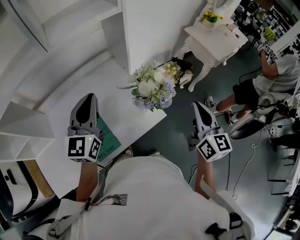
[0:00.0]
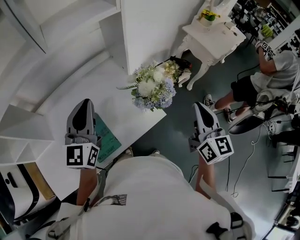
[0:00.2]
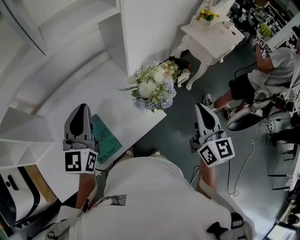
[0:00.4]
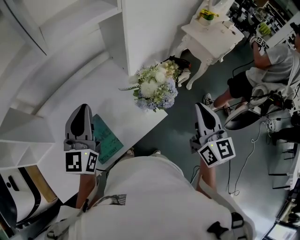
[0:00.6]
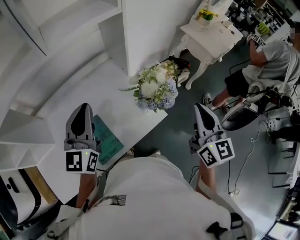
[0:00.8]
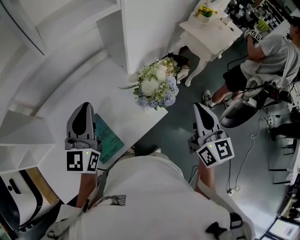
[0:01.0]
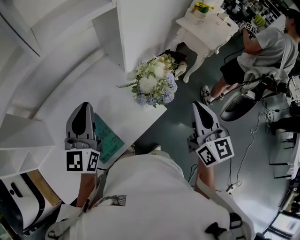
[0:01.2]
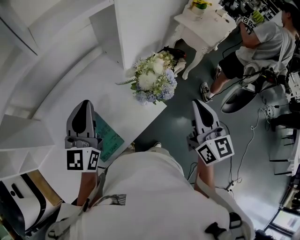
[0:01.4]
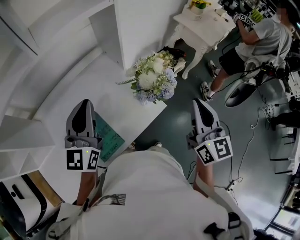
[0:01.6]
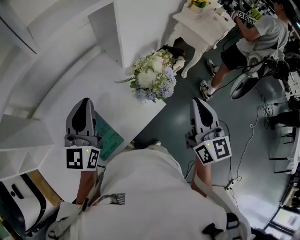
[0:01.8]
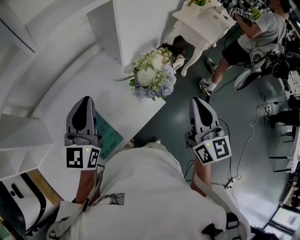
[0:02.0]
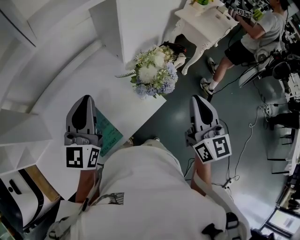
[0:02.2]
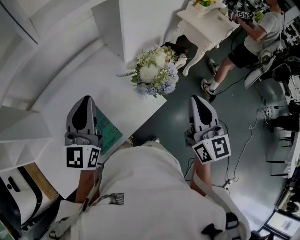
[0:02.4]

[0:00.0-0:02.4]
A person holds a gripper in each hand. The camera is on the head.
0:00.0 to 0:01.2: The right gripper shifts by roughly 5 cm.
0:01.2 to 0:02.4: There are only small adjustments of the grippers.

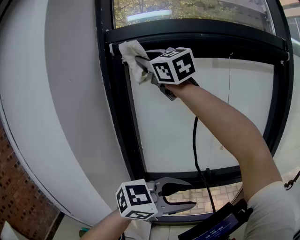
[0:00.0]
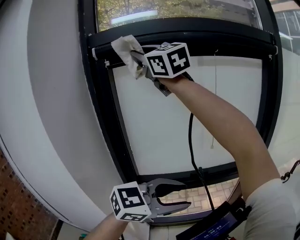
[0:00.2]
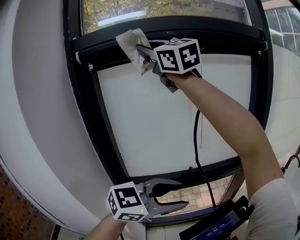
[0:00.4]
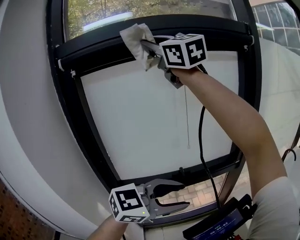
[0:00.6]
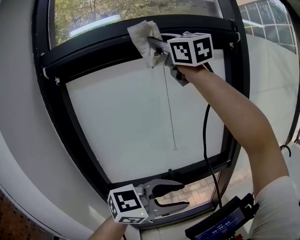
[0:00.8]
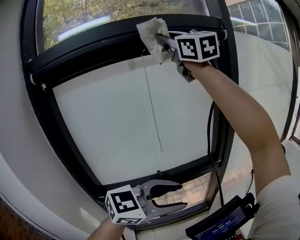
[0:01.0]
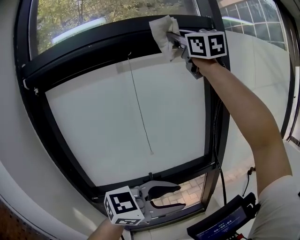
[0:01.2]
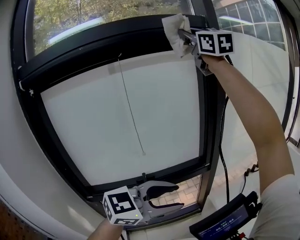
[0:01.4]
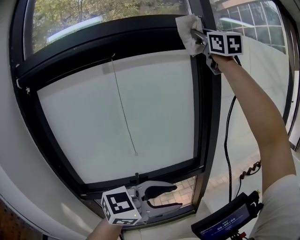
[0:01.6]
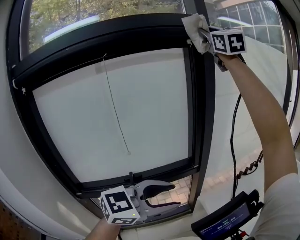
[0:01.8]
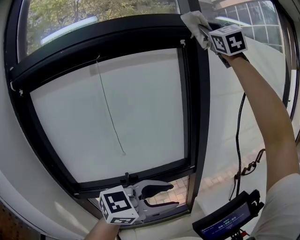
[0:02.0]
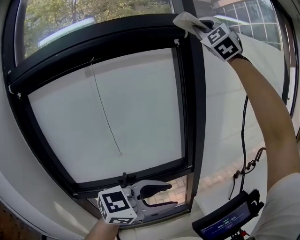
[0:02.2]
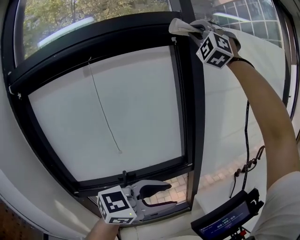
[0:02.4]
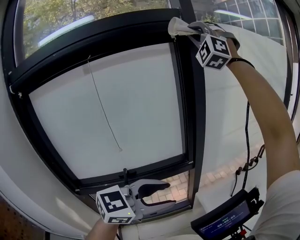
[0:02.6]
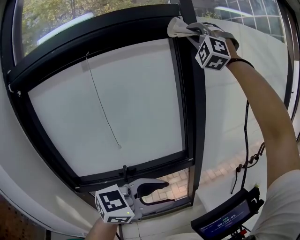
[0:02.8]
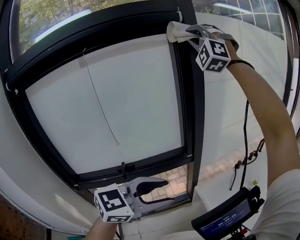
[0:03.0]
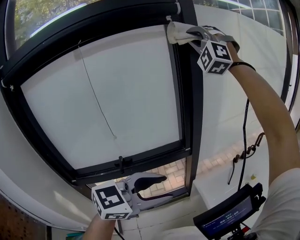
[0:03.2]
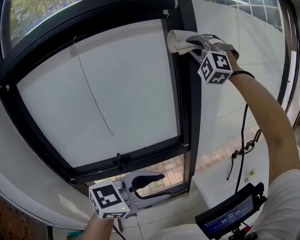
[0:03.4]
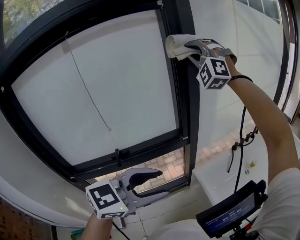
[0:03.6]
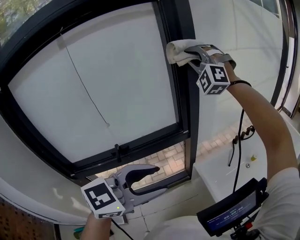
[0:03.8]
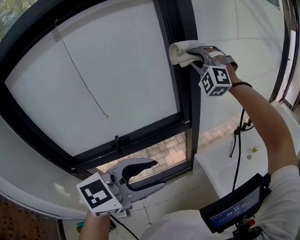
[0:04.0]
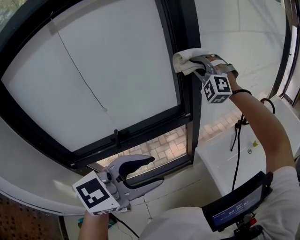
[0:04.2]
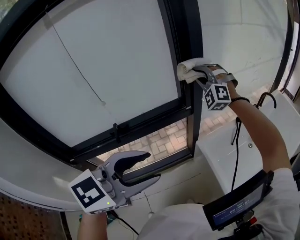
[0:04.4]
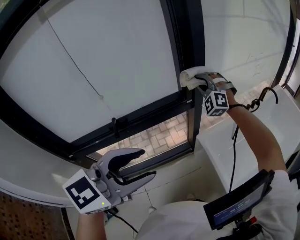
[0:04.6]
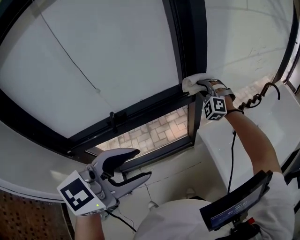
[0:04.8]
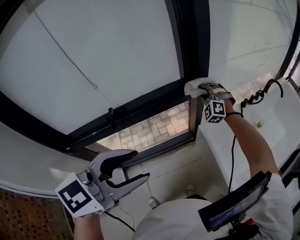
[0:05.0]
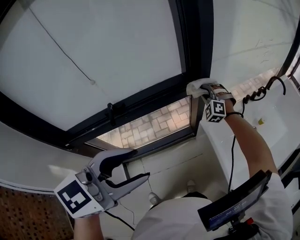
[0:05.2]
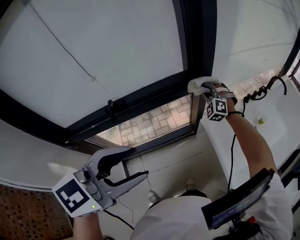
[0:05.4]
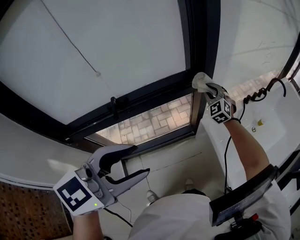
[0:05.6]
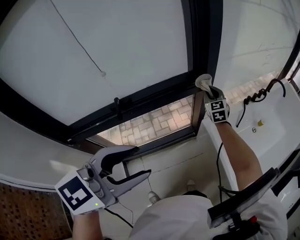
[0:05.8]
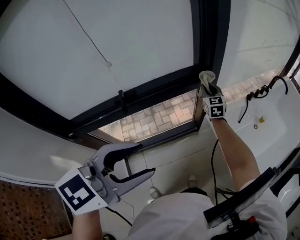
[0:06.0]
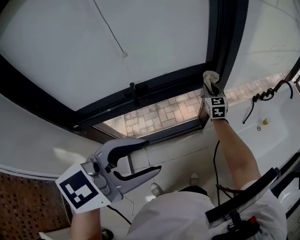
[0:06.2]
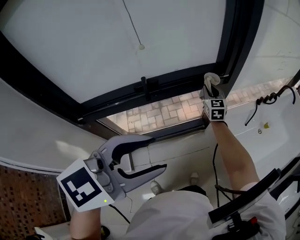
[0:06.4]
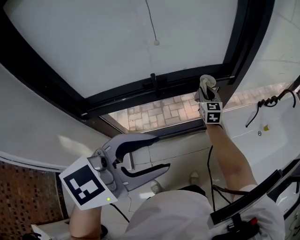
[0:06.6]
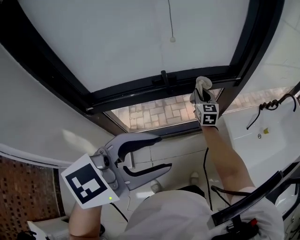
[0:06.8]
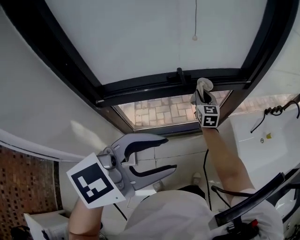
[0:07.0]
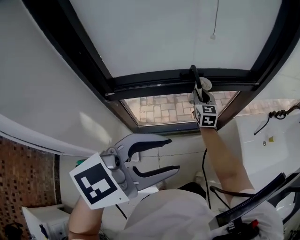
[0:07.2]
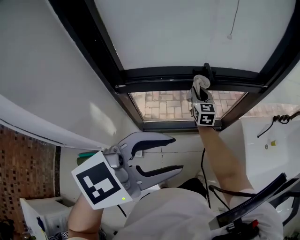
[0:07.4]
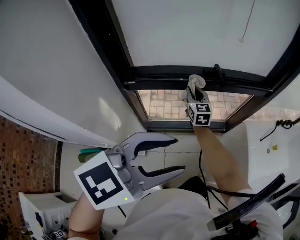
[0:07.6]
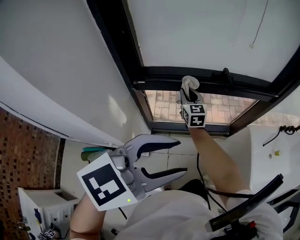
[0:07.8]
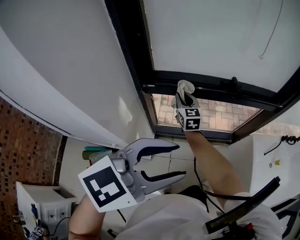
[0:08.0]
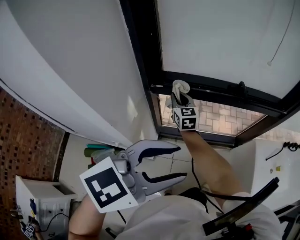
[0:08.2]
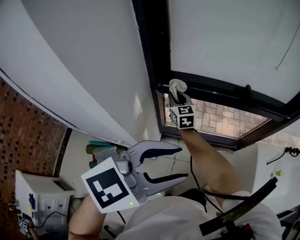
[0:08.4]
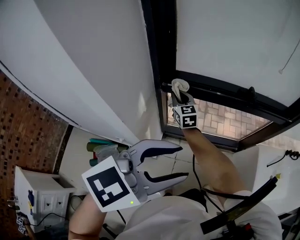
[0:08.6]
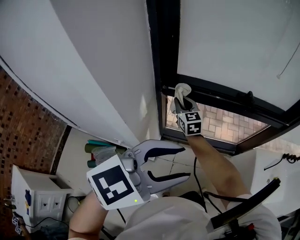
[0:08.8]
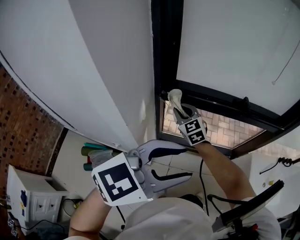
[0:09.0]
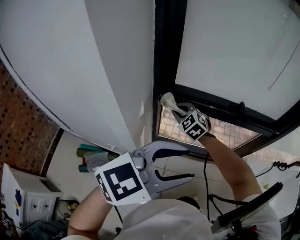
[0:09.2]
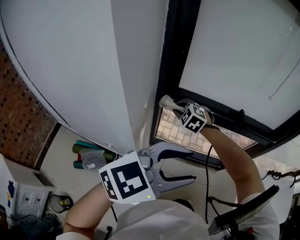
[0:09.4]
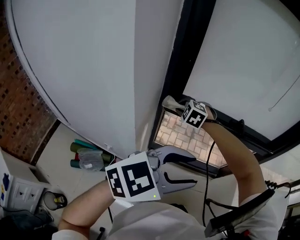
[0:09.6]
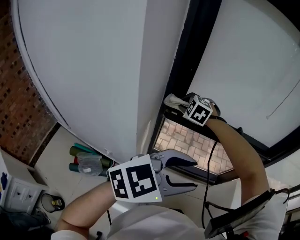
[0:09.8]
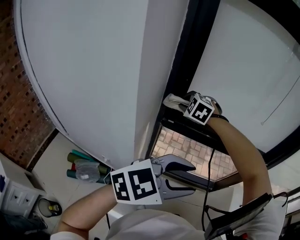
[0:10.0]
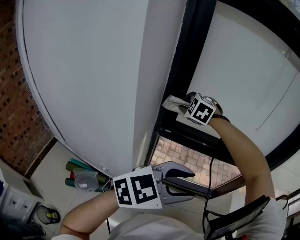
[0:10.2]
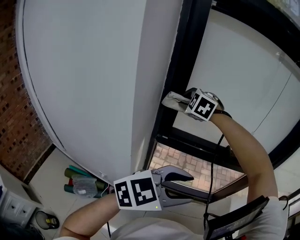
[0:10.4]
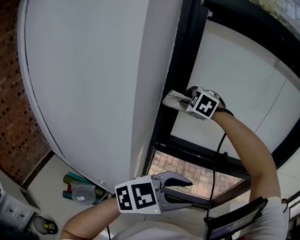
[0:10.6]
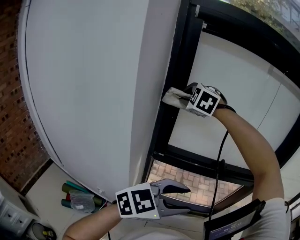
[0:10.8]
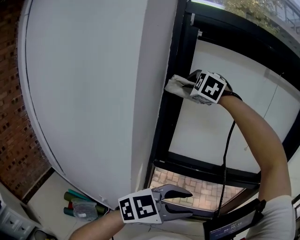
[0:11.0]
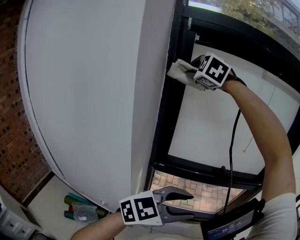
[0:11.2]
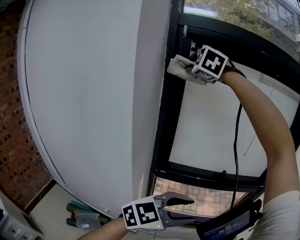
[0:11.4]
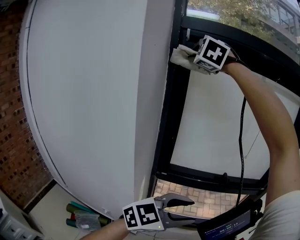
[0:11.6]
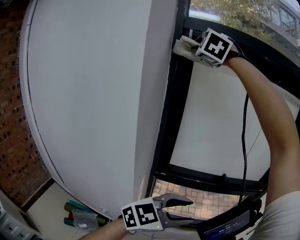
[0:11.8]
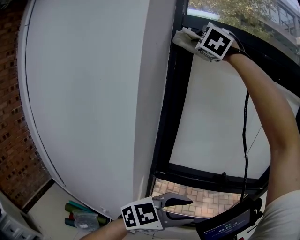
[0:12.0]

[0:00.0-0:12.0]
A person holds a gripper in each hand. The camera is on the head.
0:00.0 to 0:01.6: The right gripper ends up some 60 cm from where it was, and changes its angle by approximately 40 degrees; the left gripper ends up roughly 25 cm from where it was.
0:01.6 to 0:03.0: The right gripper goes approximately 10 cm downward, and rotates around the line of its fingers by some 80 degrees, counterclockwise from behind.
0:03.0 to 0:04.4: The right gripper heads downward, covering some 40 cm, and rotates about 30 degrees.
0:04.4 to 0:06.0: The right gripper moves downward, roughly 25 cm, and twists some 70 degrees clockwise, seen from behind. Meanwhile the left gripper heads to the left, covering some 5 cm.
0:06.0 to 0:07.6: The right gripper is displaced to the left and backward by roughly 50 cm, and rotates roughly 20 degrees. Meanwhile the left gripper shifts some 25 cm backward and to the left.
0:07.6 to 0:09.0: The left gripper goes about 10 cm to the left. Meanwhile the right gripper heads to the left and backward, covering some 25 cm, and rotates roughly 40 degrees.
0:09.0 to 0:10.4: The right gripper shifts about 25 cm upward, and rolls counterclockwise, seen from behind, by roughly 40 degrees.
0:10.4 to 0:12.0: The right gripper heads upward, covering roughly 40 cm, and tips its fingers upward by approximately 40 degrees.

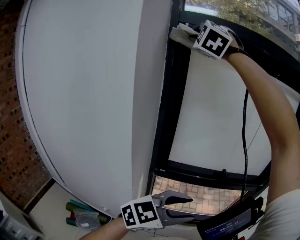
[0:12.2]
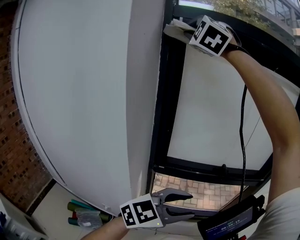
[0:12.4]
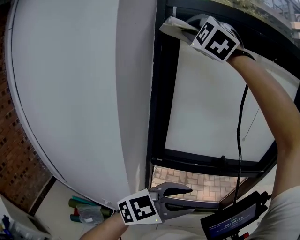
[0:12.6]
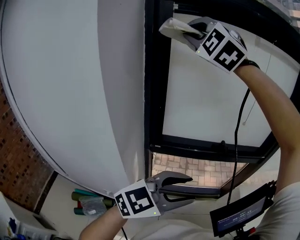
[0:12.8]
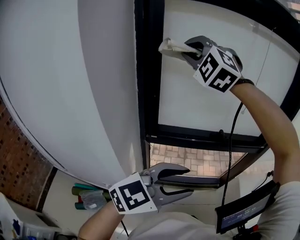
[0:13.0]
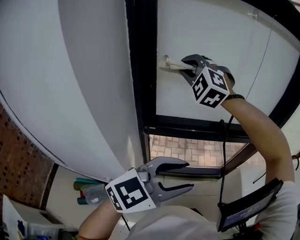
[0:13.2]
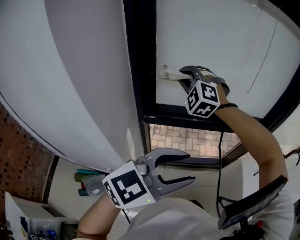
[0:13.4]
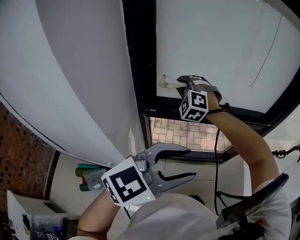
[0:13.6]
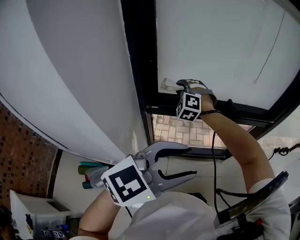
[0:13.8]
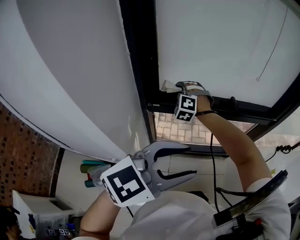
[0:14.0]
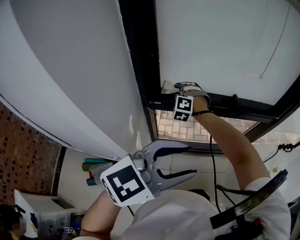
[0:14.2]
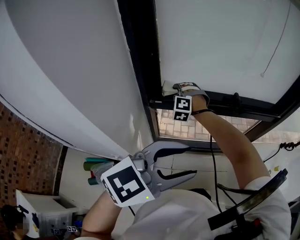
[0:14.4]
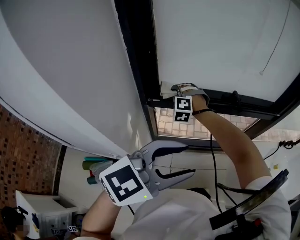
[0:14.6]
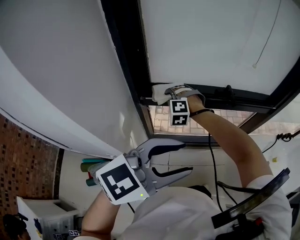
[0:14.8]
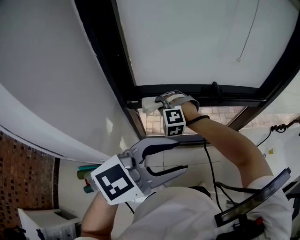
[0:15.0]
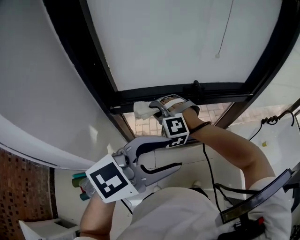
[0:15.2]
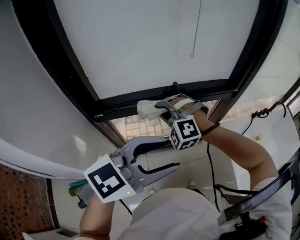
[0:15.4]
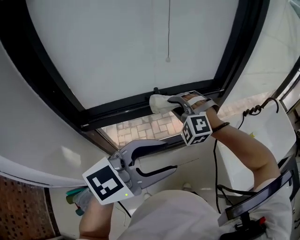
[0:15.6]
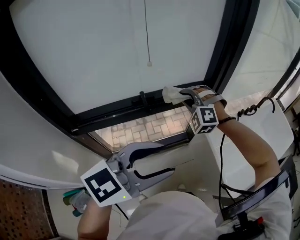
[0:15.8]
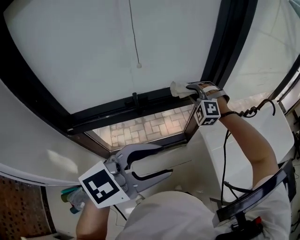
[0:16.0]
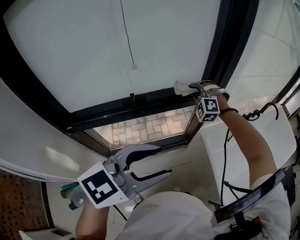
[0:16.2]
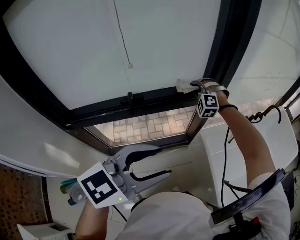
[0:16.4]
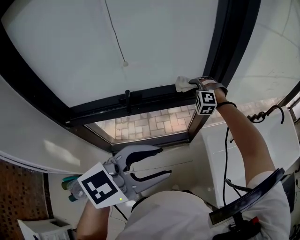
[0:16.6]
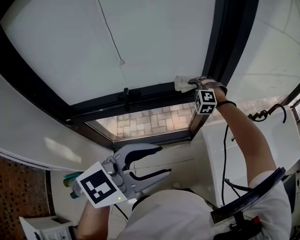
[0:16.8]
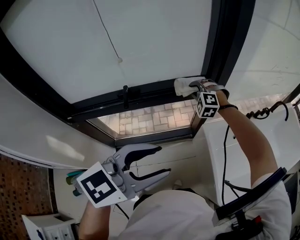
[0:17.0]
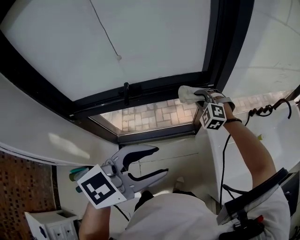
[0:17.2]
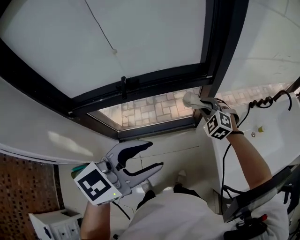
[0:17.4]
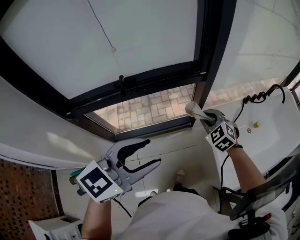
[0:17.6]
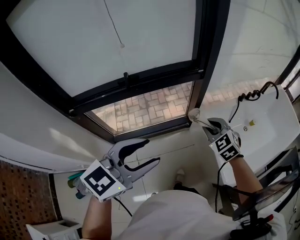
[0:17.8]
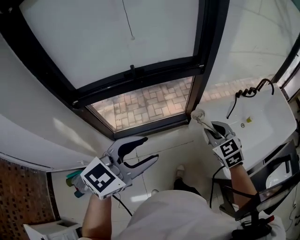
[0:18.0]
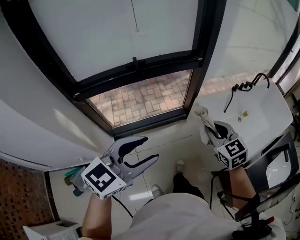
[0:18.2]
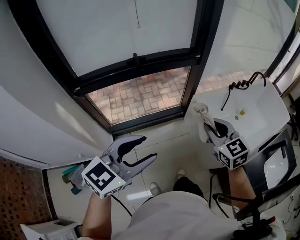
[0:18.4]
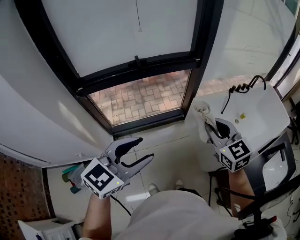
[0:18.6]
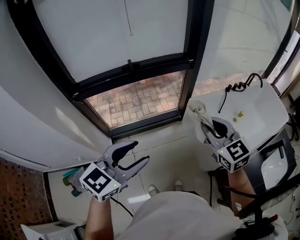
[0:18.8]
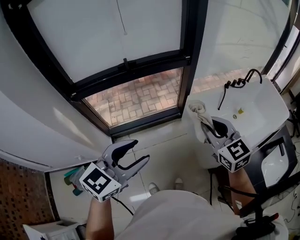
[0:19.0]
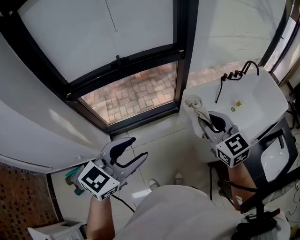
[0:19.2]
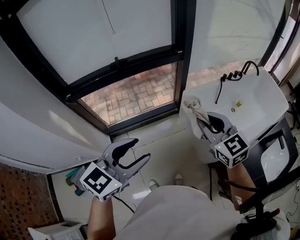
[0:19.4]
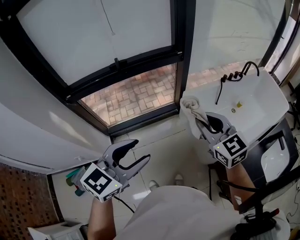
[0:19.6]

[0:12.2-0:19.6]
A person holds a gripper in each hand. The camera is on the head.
0:12.2 to 0:13.6: The right gripper heads downward, covering approximately 50 cm, and swivels approximately 20 degrees.
0:13.6 to 0:15.2: The right gripper shifts about 15 cm downward, to the right and backward, while the left gripper changes place by roughly 5 cm.
0:15.2 to 0:16.6: The left gripper moves to the right and forward, some 25 cm; the right gripper moves forward and to the right, approximately 50 cm.
0:16.6 to 0:18.2: The right gripper shifts about 40 cm backward, and twists approximately 70 degrees clockwise, seen from behind, while the left gripper moves backward, some 20 cm.
0:18.2 to 0:19.6: The left gripper moves to the right, approximately 5 cm. Meanwhile the right gripper shifts about 10 cm upward.

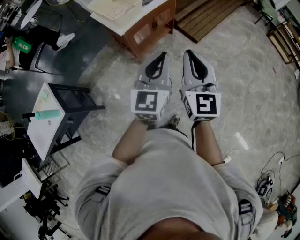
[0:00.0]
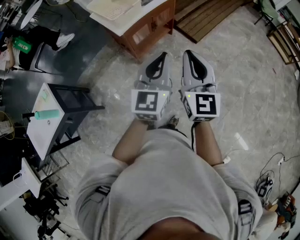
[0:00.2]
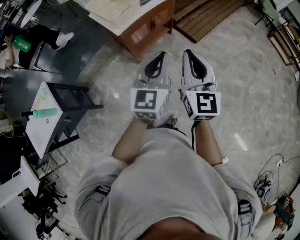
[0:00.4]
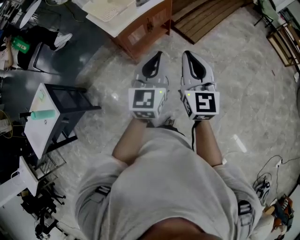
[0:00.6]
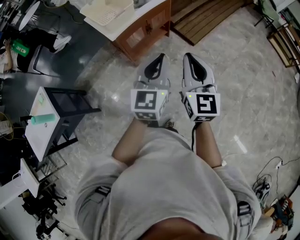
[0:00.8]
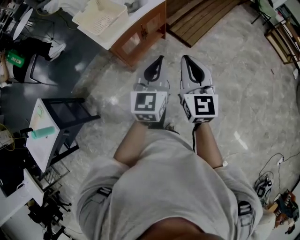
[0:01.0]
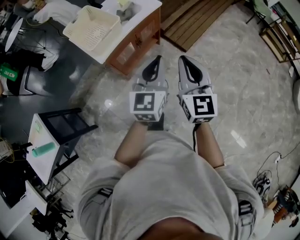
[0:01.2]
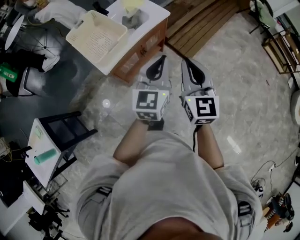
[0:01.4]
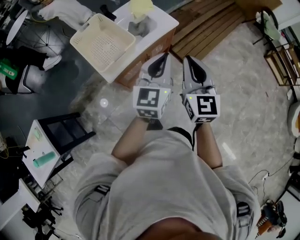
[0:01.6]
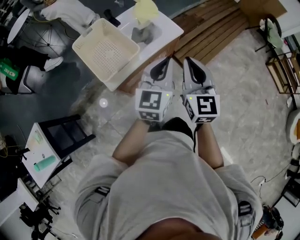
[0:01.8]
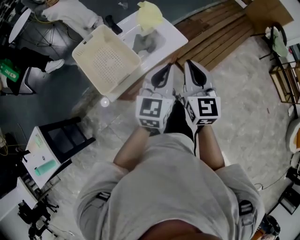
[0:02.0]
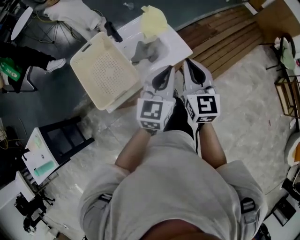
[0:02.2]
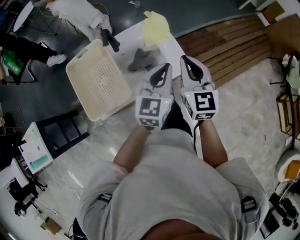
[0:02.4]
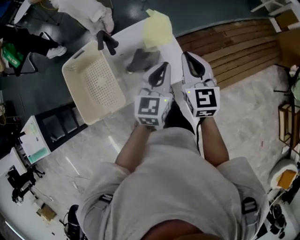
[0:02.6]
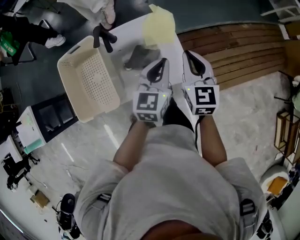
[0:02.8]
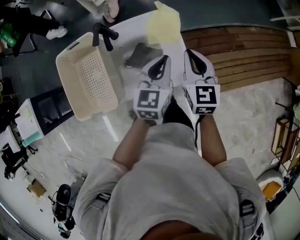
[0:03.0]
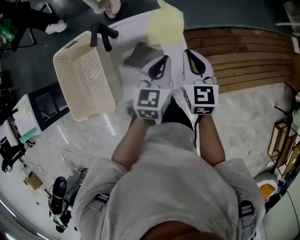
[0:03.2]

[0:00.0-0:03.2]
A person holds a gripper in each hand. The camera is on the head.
0:00.0 to 0:01.6: The grippers both shift forward by approximately 35 cm.
0:01.6 to 0:03.2: Both grippers are carried roughly 50 cm. The left gripper turns by some 40 degrees. The right gripper turns by about 40 degrees.
